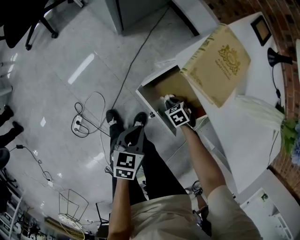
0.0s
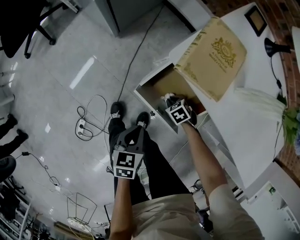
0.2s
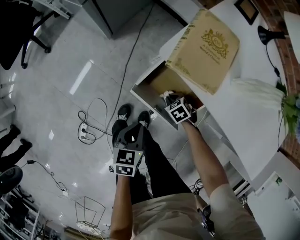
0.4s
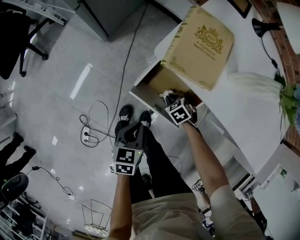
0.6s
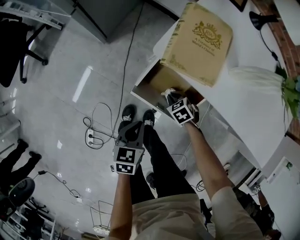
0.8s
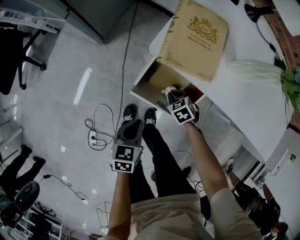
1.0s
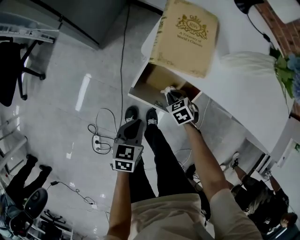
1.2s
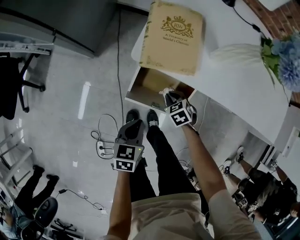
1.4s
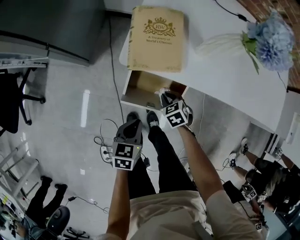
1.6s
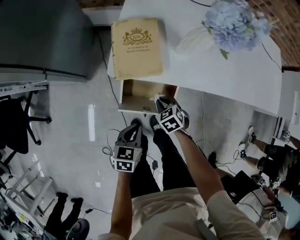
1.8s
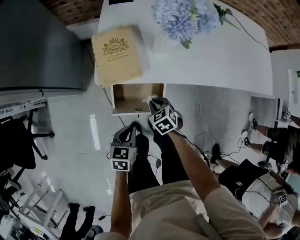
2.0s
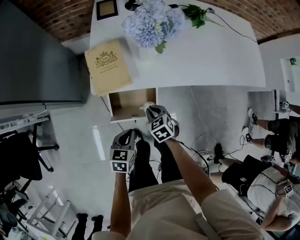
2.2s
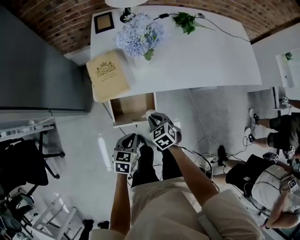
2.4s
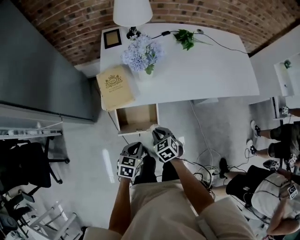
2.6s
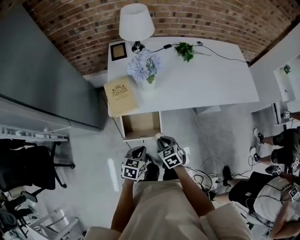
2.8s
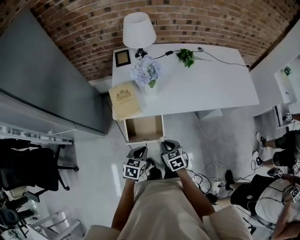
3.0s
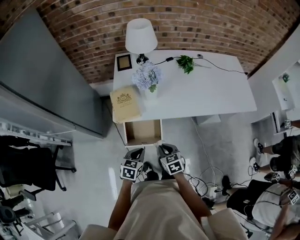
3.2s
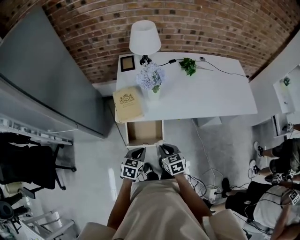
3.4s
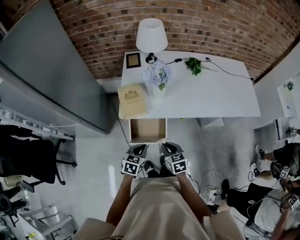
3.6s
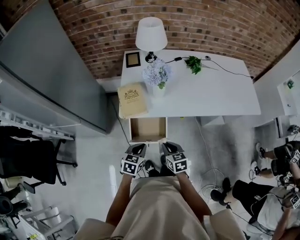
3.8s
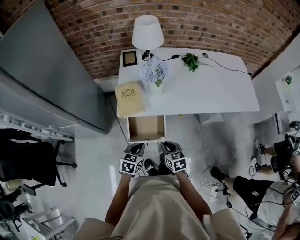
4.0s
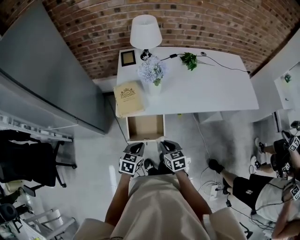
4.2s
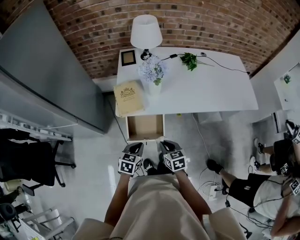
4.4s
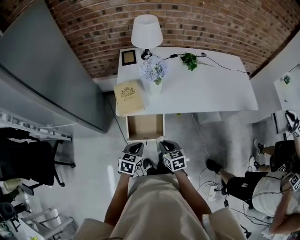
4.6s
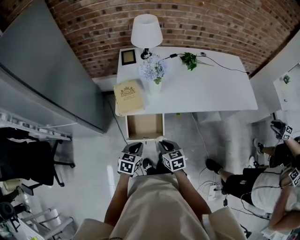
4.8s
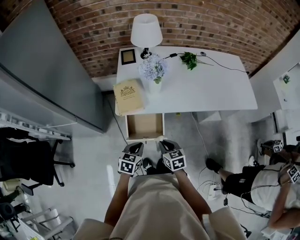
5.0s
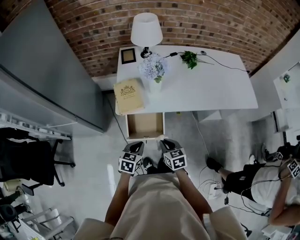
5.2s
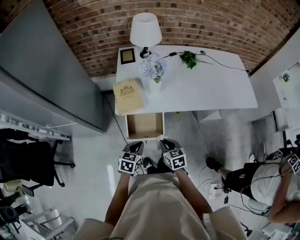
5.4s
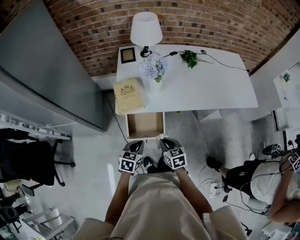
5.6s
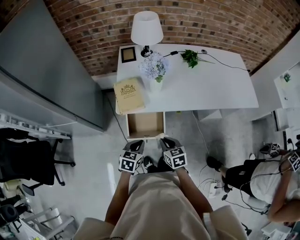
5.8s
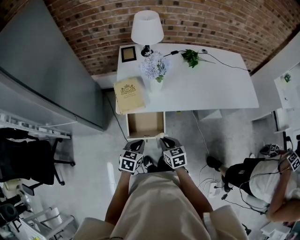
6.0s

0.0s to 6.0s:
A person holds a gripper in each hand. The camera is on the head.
0.0s to 1.6s: The right gripper shifts approximately 10 cm upward, and turns by about 40 degrees. Meanwhile the left gripper changes its angle by roughly 30 degrees.
1.6s to 3.0s: The right gripper moves upward and backward, about 25 cm, and rotates roughly 30 degrees. The left gripper shifts some 20 cm upward and to the right, and turns by roughly 20 degrees.
3.0s to 4.4s: The grippers move only a little.
4.4s to 6.0s: The two grippers keep their place.

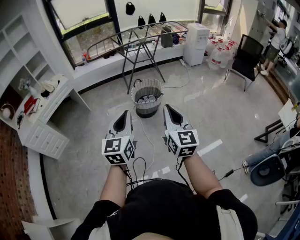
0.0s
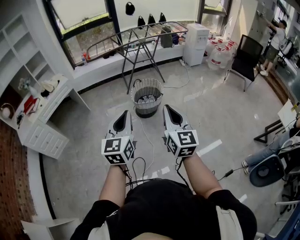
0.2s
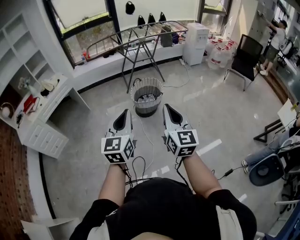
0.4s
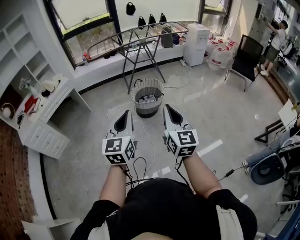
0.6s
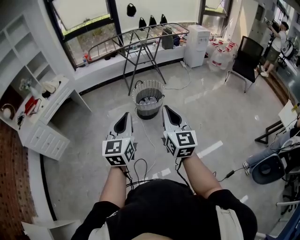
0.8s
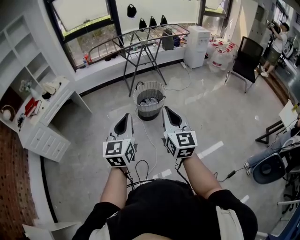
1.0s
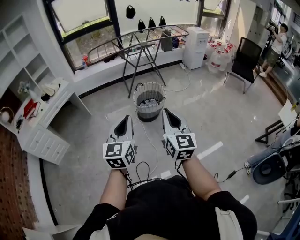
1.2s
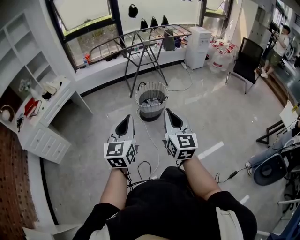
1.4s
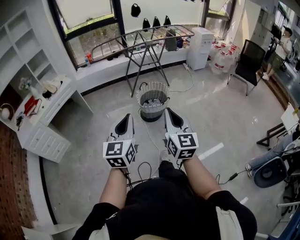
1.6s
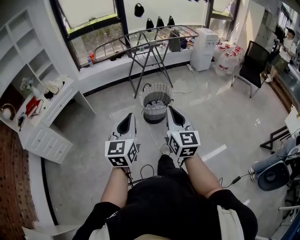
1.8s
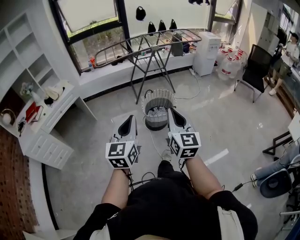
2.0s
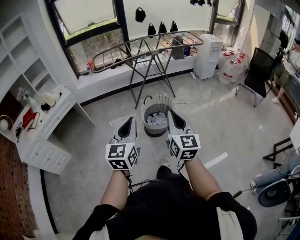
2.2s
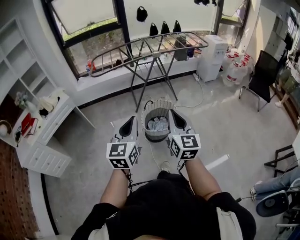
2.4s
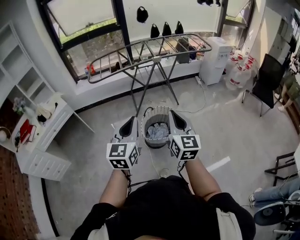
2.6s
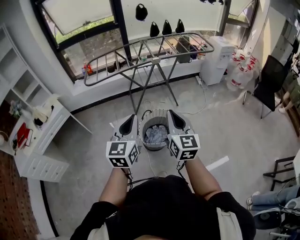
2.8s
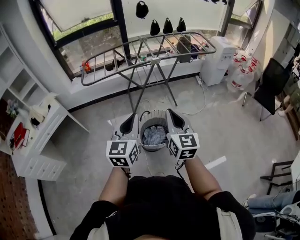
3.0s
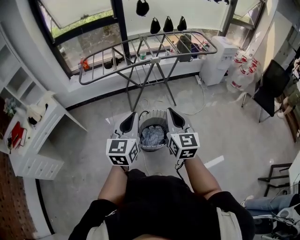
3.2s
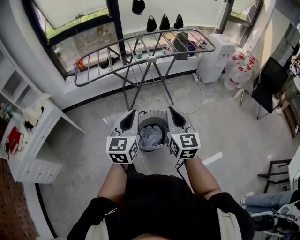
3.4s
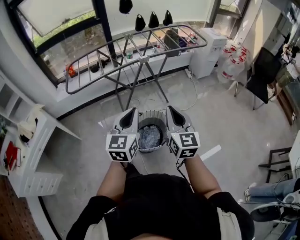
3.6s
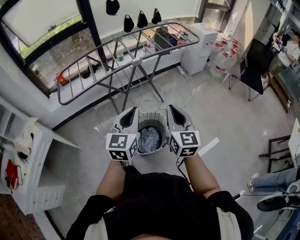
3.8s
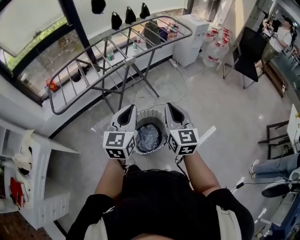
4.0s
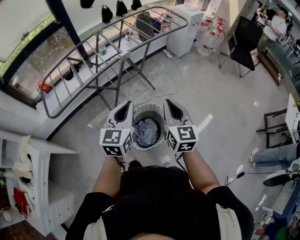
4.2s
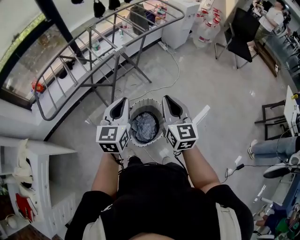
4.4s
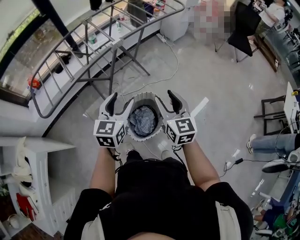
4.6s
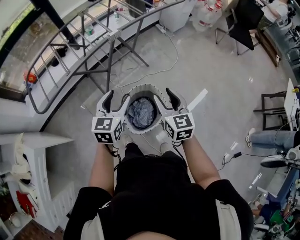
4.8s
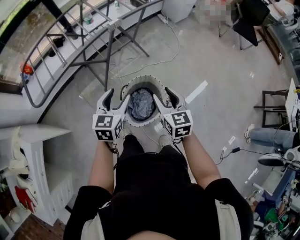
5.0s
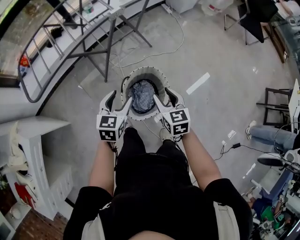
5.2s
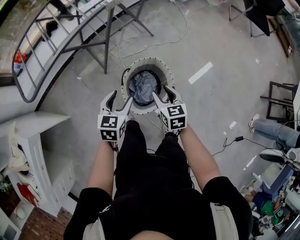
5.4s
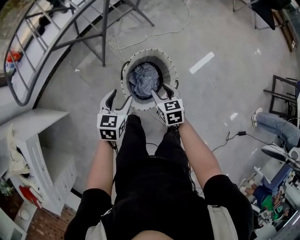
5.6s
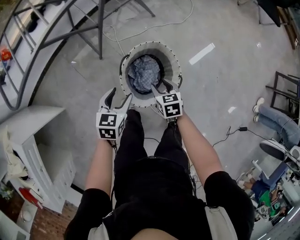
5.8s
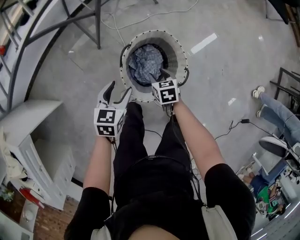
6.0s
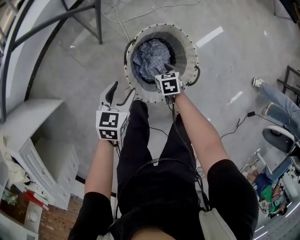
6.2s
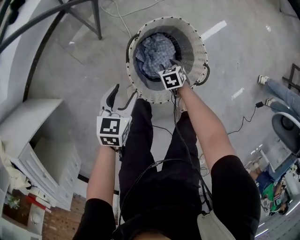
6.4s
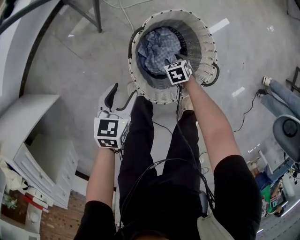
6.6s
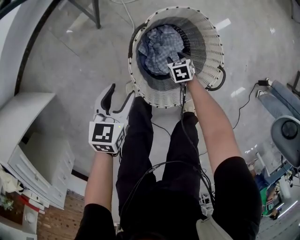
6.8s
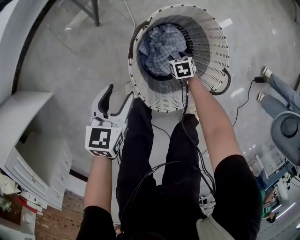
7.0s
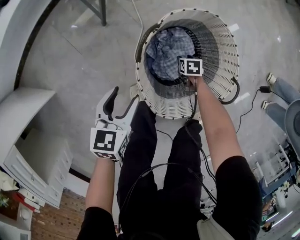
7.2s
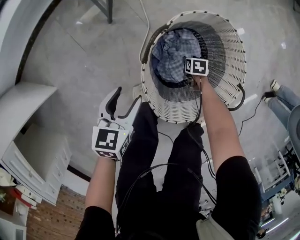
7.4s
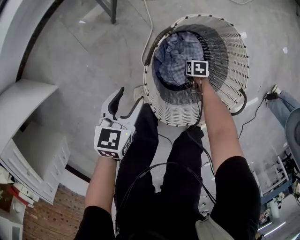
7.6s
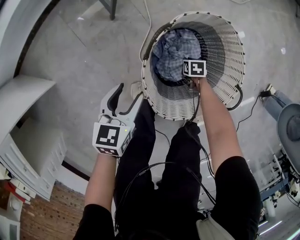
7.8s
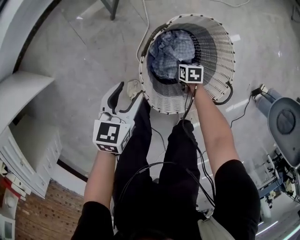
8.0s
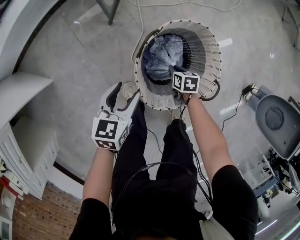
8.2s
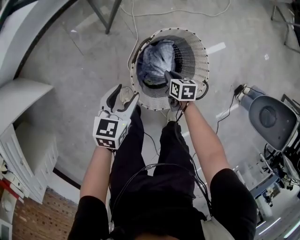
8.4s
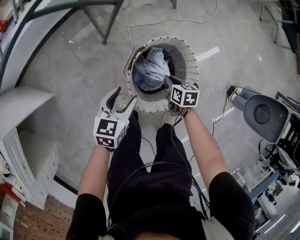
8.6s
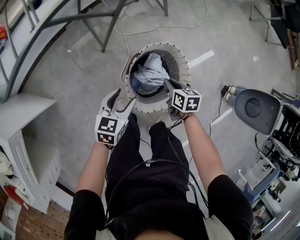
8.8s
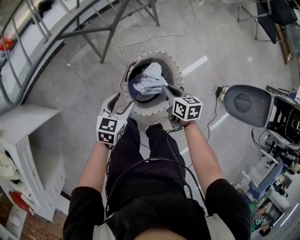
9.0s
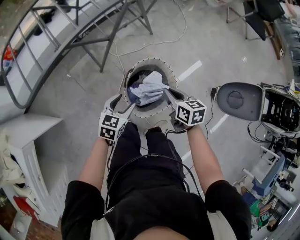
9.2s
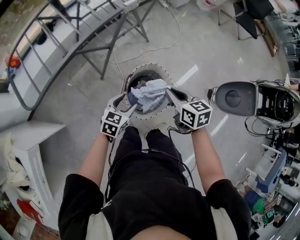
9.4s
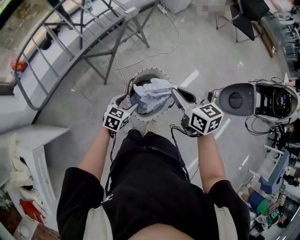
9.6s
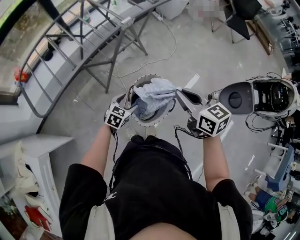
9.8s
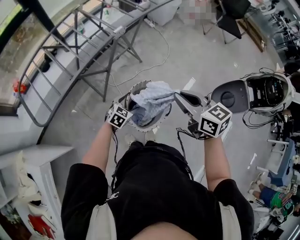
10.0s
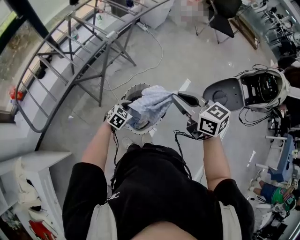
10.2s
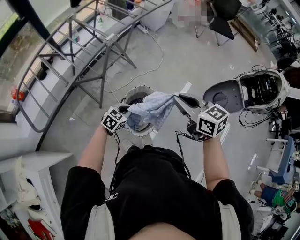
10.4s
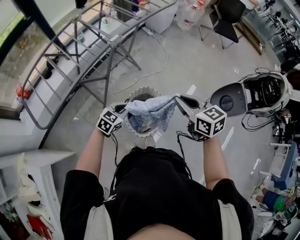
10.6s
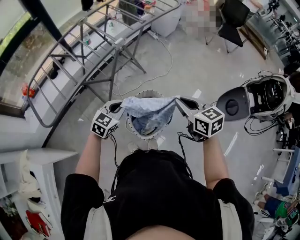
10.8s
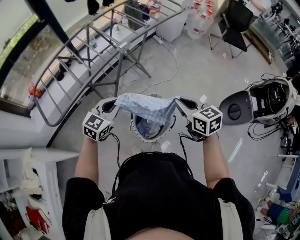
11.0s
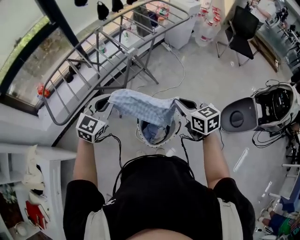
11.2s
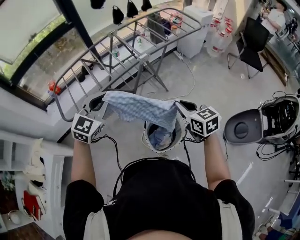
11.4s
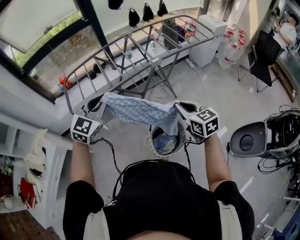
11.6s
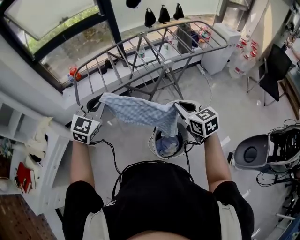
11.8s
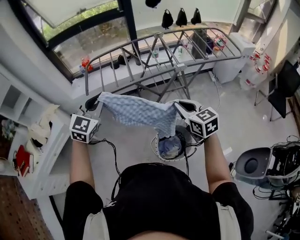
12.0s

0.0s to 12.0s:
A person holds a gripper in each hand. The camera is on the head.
0.0s to 1.6s: Both grippers move to the left, about 10 cm.
1.6s to 3.0s: The two grippers travel together, forward, some 50 cm.
3.0s to 4.4s: The left gripper moves forward, some 25 cm, and turns by some 30 degrees, while the right gripper is displaced forward and downward by approximately 20 cm, and turns by some 20 degrees.
4.4s to 6.0s: The two grippers go about 50 cm downward. The left gripper angles its fingers downward, by roughly 30 degrees, and opens up. Meanwhile the right gripper tips its fingers downward by some 50 degrees, and opens its fingers.
6.0s to 7.6s: The left gripper travels downward by roughly 20 cm. The right gripper moves downward, approximately 40 cm, changes its angle by roughly 20 degrees, and closes.
7.6s to 9.0s: The left gripper shifts roughly 25 cm upward. The right gripper travels upward by approximately 50 cm, and points its fingers roughly 30 degrees further upward.
9.0s to 10.4s: The left gripper moves upward and to the right, roughly 10 cm, changes its angle by roughly 40 degrees, and closes. Meanwhile the right gripper travels upward by about 40 cm, and rotates roughly 30 degrees.
10.4s to 12.0s: The left gripper heads upward, covering roughly 35 cm, and changes its angle by some 70 degrees. Meanwhile the right gripper ends up some 15 cm from where it was, and changes its angle by roughly 30 degrees.

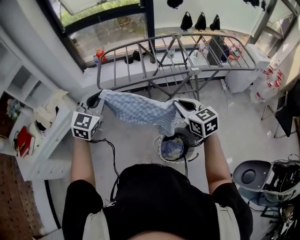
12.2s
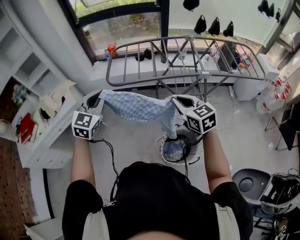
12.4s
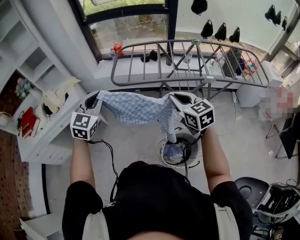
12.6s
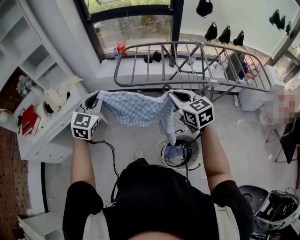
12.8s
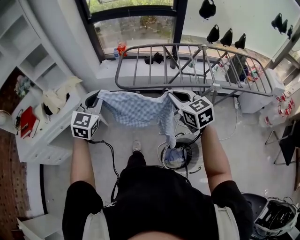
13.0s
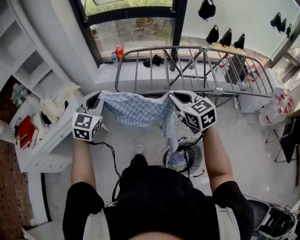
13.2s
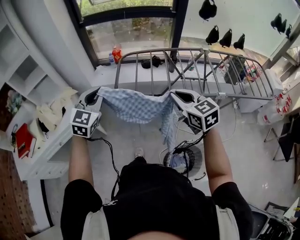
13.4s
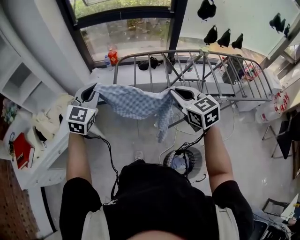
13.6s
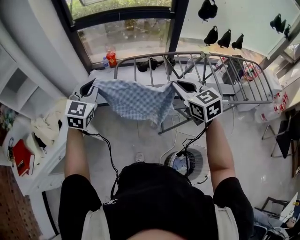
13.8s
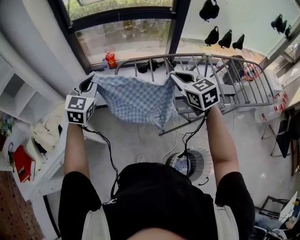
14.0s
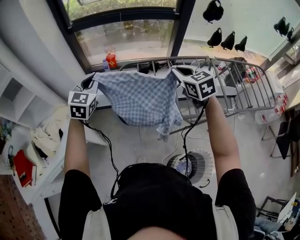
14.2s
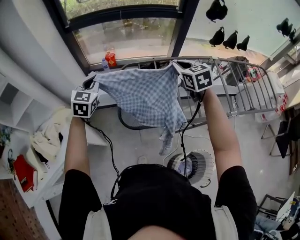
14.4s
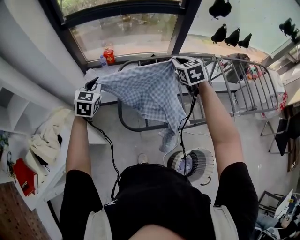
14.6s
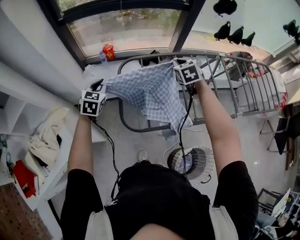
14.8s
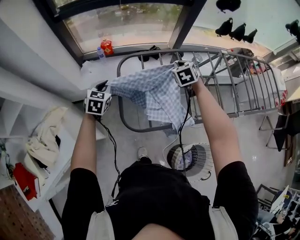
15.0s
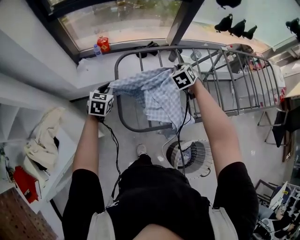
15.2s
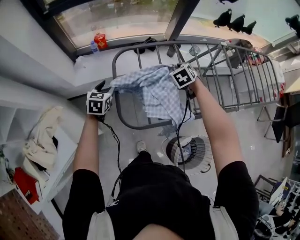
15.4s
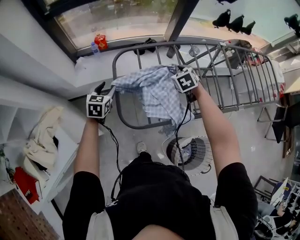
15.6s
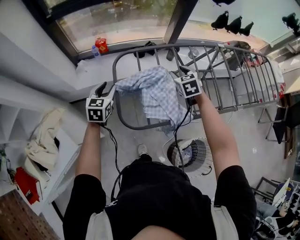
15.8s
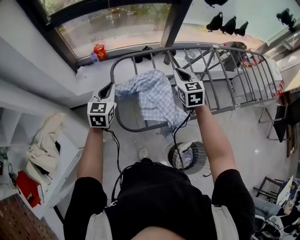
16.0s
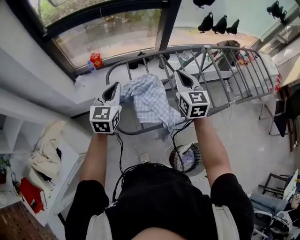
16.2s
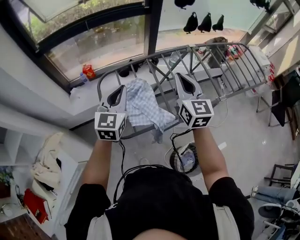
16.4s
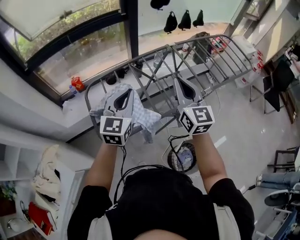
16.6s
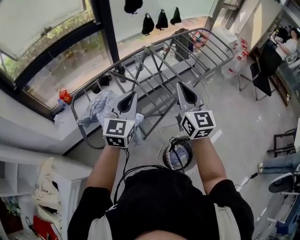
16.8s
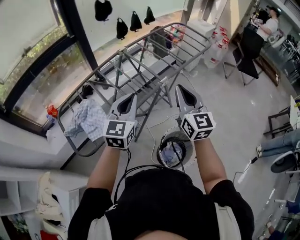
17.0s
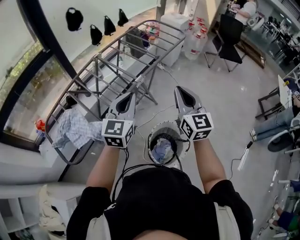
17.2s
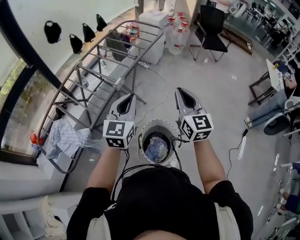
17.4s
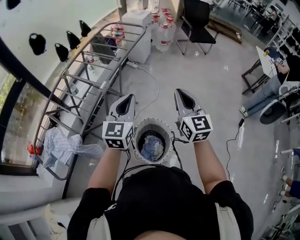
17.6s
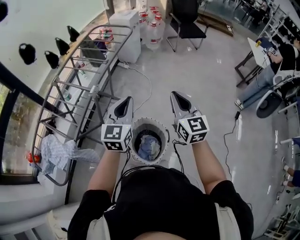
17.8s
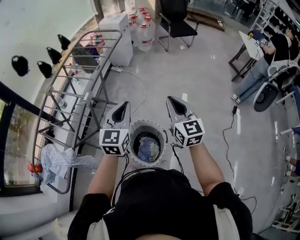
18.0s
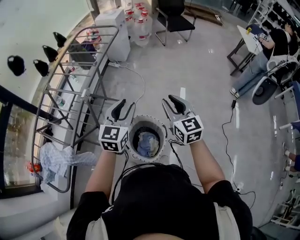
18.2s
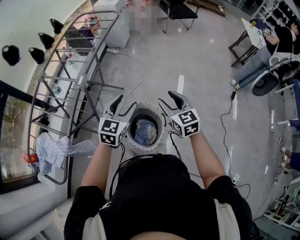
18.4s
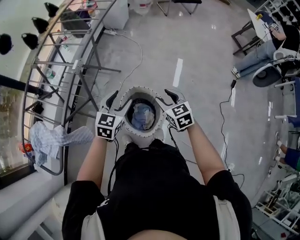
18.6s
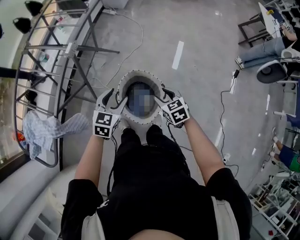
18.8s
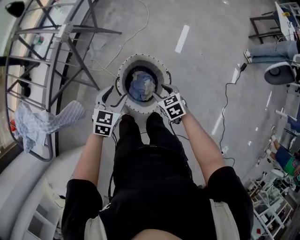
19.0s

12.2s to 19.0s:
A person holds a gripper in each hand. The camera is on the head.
12.2s to 13.6s: The two grippers go roughly 30 cm forward and to the left.
13.6s to 15.0s: The grippers both shift forward and downward by approximately 40 cm. The right gripper swivels roughly 40 degrees. The left gripper turns by about 30 degrees.
15.0s to 16.2s: The right gripper is displaced upward and backward by approximately 20 cm, tilts its fingers roughly 30 degrees upward, and opens, then closes again. The left gripper shifts roughly 20 cm upward and to the right, changes its angle by some 20 degrees, and opens, then closes again.
16.2s to 17.6s: The two grippers travel together, roughly 70 cm. The left gripper turns by about 60 degrees. The right gripper rotates roughly 50 degrees.
17.6s to 19.0s: The two grippers go roughly 40 cm downward. The right gripper angles its fingers downward, by about 50 degrees, and opens. The left gripper angles its fingers downward, by some 40 degrees, and opens its fingers.
